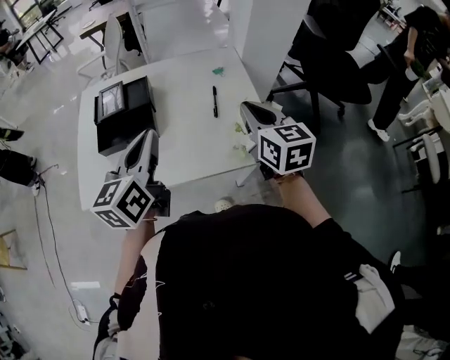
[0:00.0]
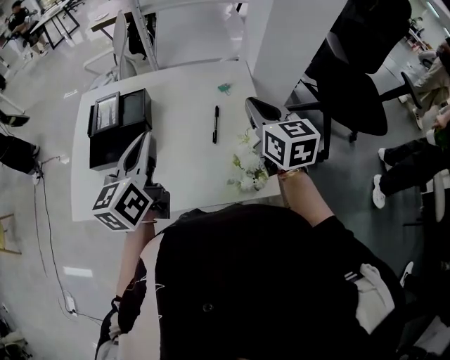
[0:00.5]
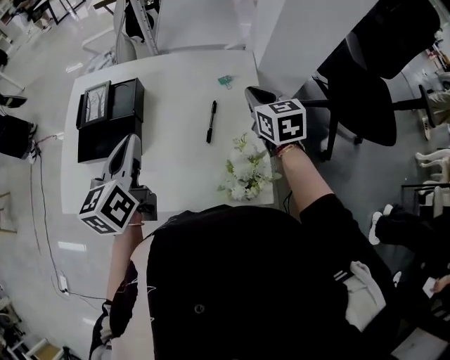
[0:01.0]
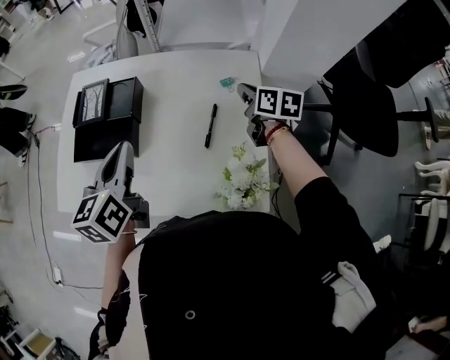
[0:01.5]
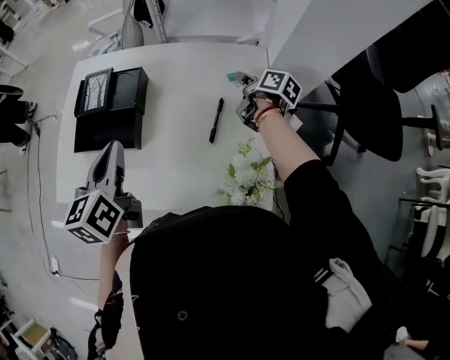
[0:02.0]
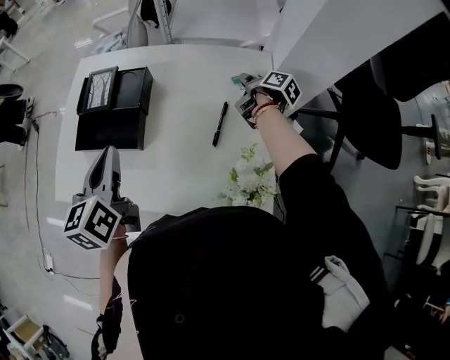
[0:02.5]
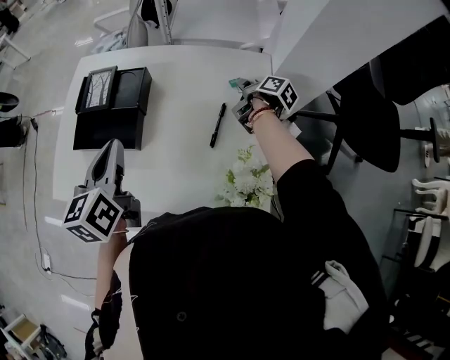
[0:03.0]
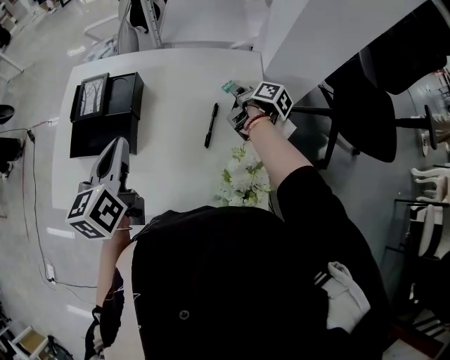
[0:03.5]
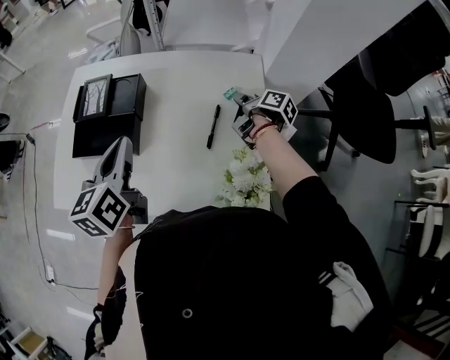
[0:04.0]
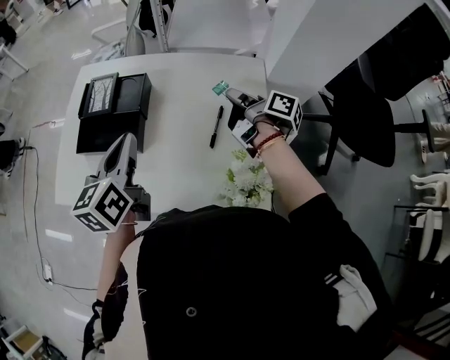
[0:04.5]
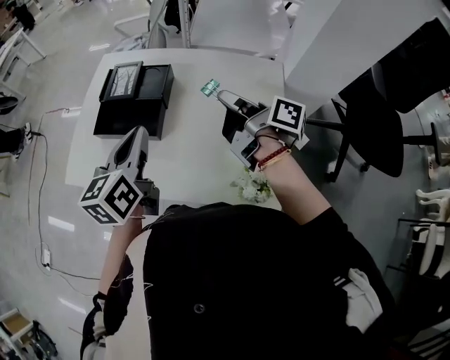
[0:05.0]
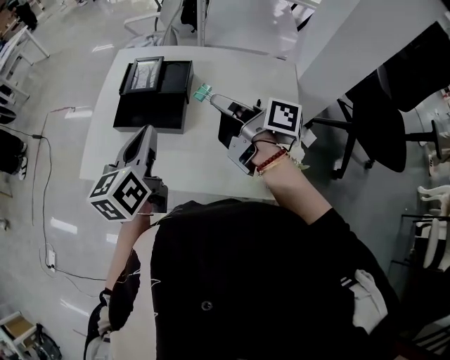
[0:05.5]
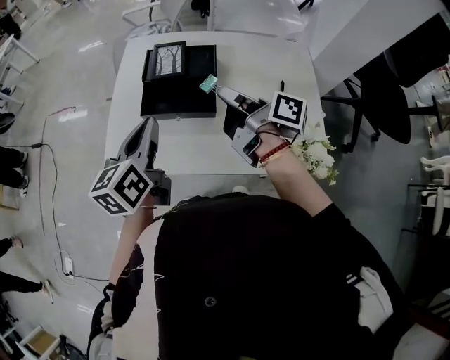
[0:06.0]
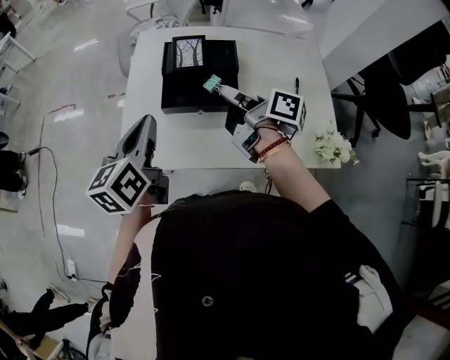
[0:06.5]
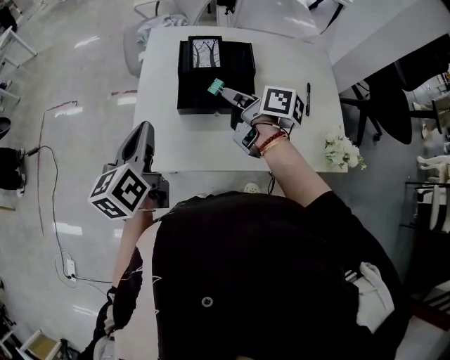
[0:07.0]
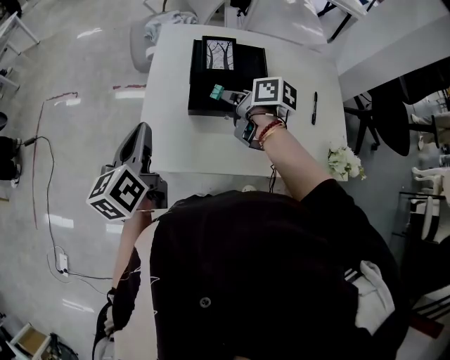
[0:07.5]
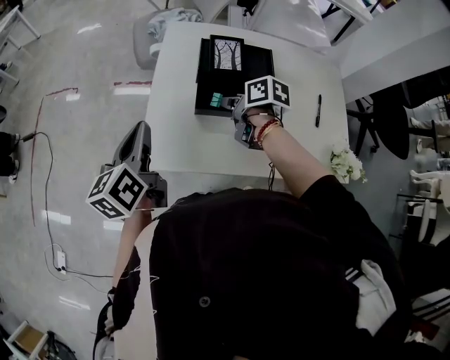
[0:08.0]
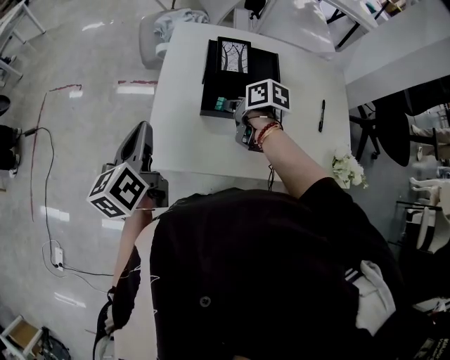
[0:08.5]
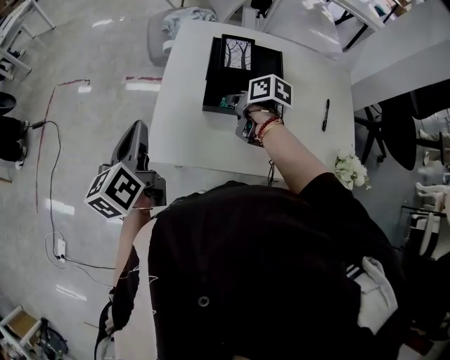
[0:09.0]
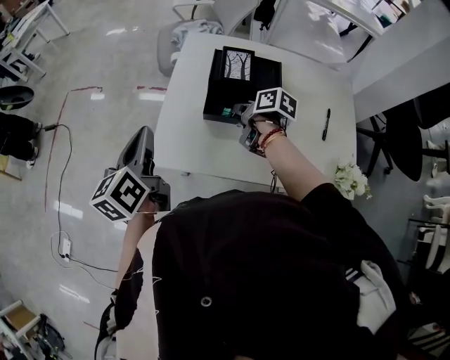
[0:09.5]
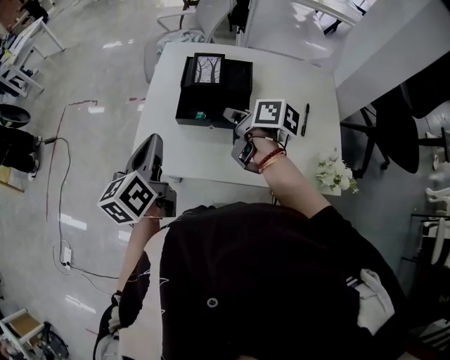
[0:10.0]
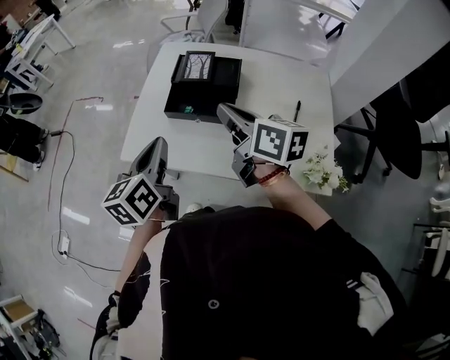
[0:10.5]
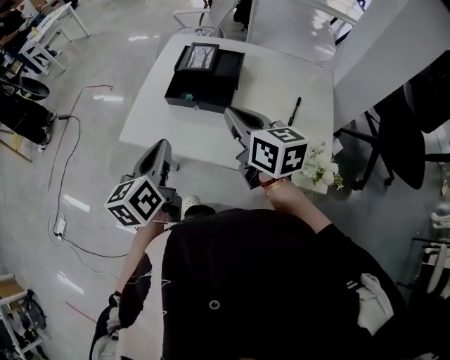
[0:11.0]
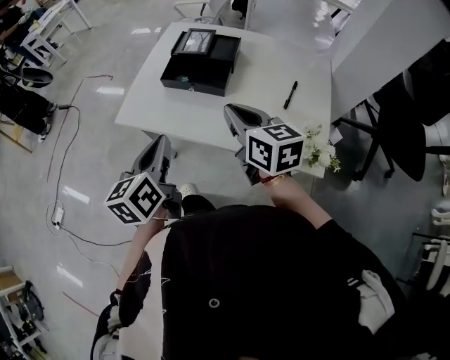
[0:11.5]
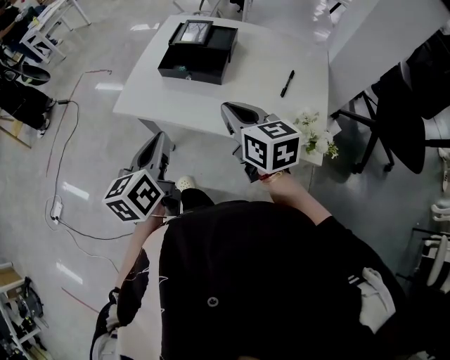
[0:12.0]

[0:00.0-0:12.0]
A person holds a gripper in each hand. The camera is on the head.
0:00.0 to 0:02.0: The left gripper goes approximately 15 cm forward and downward, and changes its angle by some 30 degrees. The right gripper goes roughly 35 cm forward and downward, rotates around the line of its fingers by about 50 degrees, clockwise from behind, and opens up.
0:02.0 to 0:04.0: The right gripper closes up.
0:04.0 to 0:06.0: The right gripper heads to the left and upward, covering some 40 cm, and turns by roughly 30 degrees. Meanwhile the left gripper moves to the left, approximately 20 cm.
0:06.0 to 0:08.0: The right gripper travels downward, to the left and forward by approximately 20 cm, and tips its fingers downward by some 40 degrees. The left gripper shifts approximately 20 cm to the left.
0:08.0 to 0:10.0: The right gripper travels upward, backward and to the right by roughly 10 cm. The left gripper shifts about 10 cm to the right and backward.
0:10.0 to 0:12.0: The two grippers go roughly 20 cm backward. The right gripper twists roughly 50 degrees counterclockwise, seen from behind.

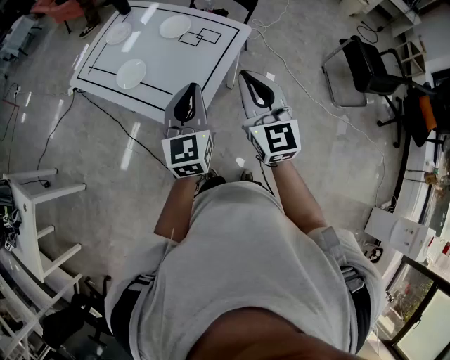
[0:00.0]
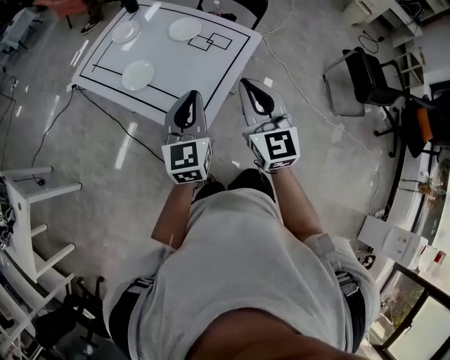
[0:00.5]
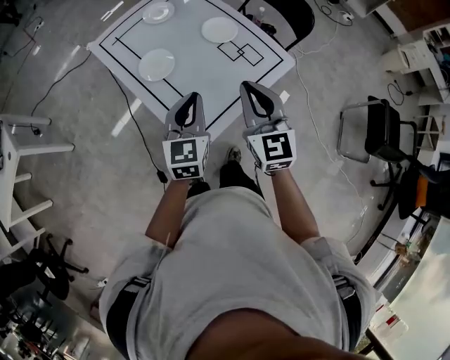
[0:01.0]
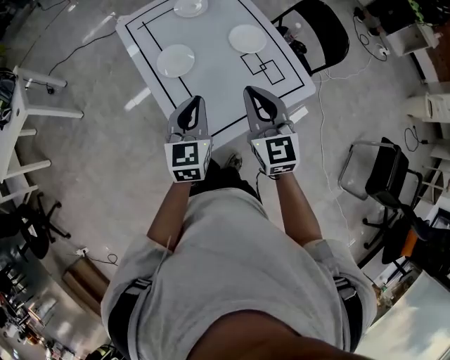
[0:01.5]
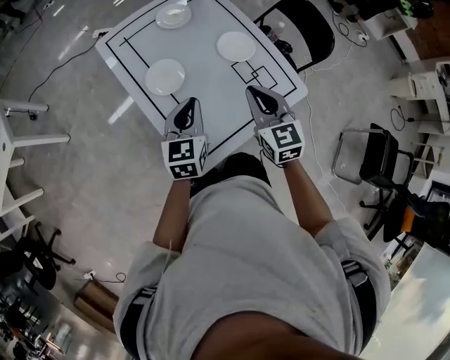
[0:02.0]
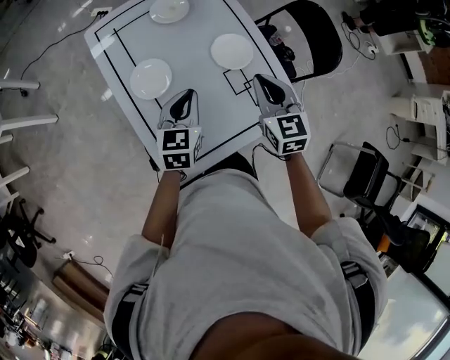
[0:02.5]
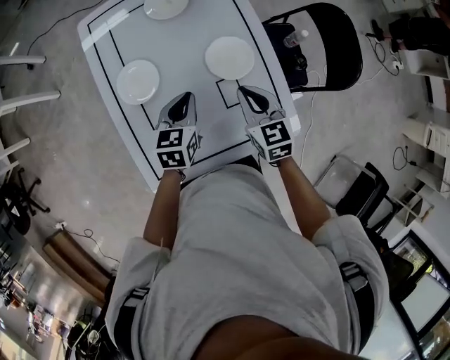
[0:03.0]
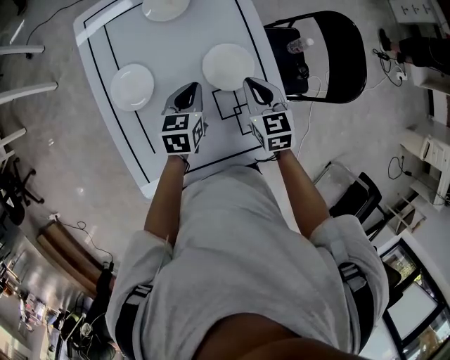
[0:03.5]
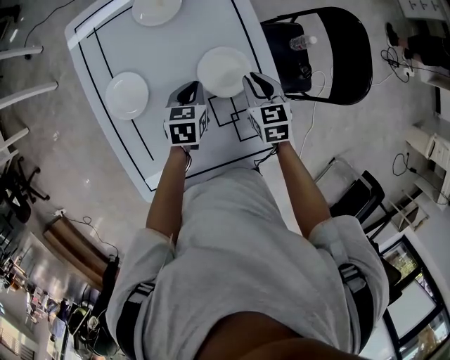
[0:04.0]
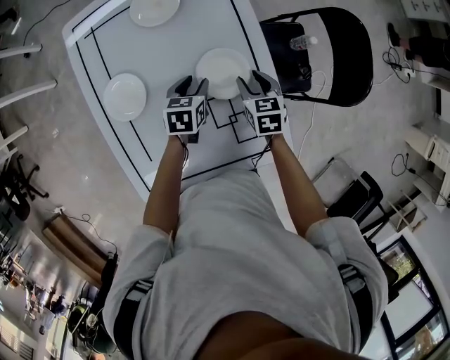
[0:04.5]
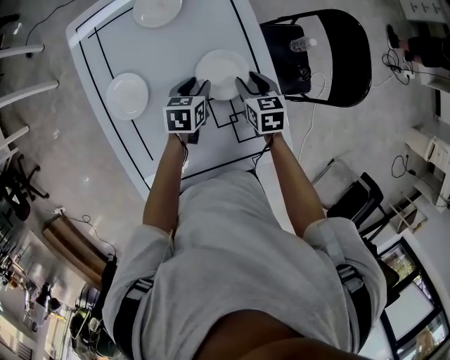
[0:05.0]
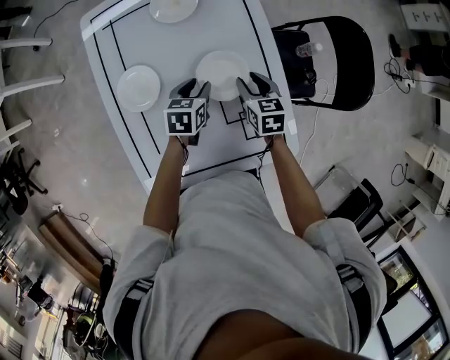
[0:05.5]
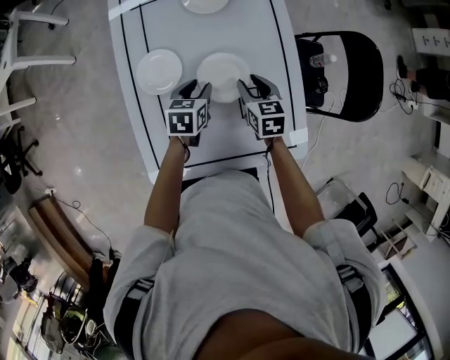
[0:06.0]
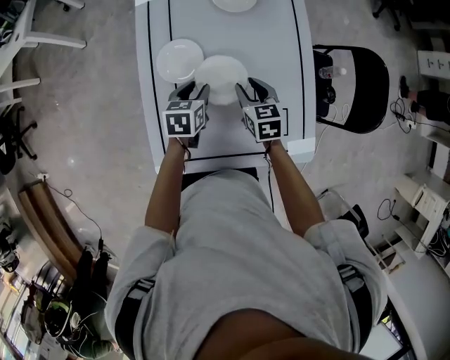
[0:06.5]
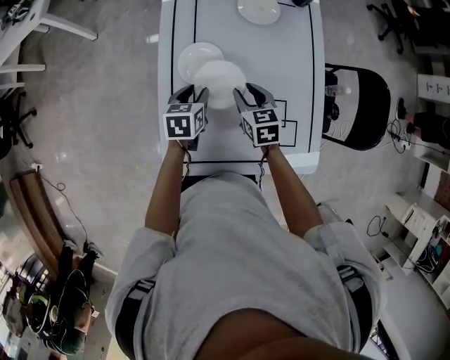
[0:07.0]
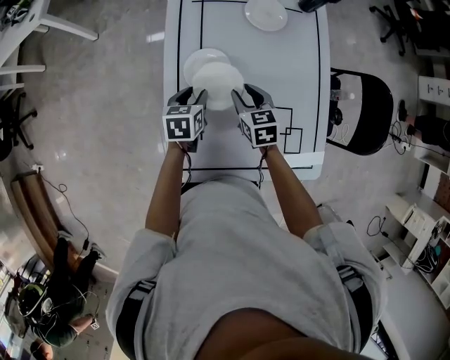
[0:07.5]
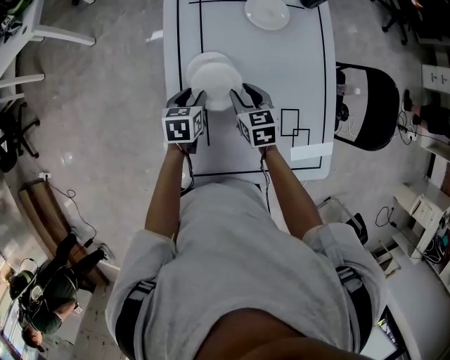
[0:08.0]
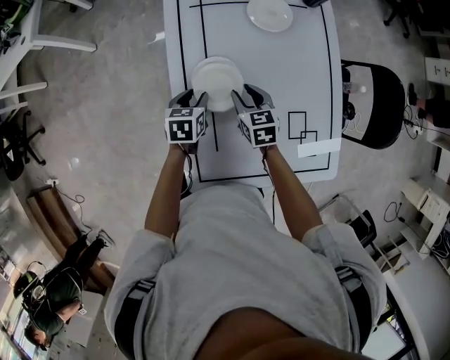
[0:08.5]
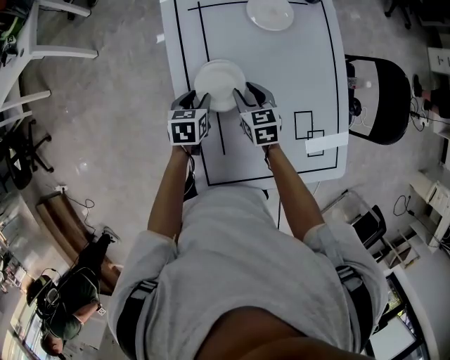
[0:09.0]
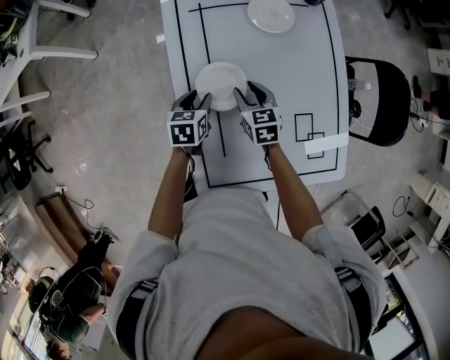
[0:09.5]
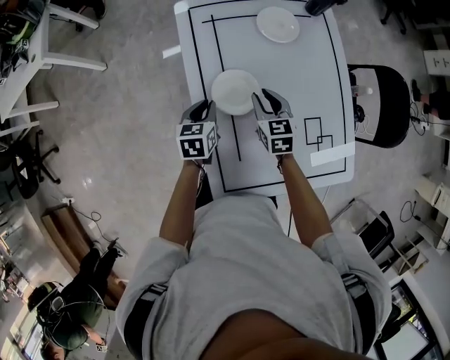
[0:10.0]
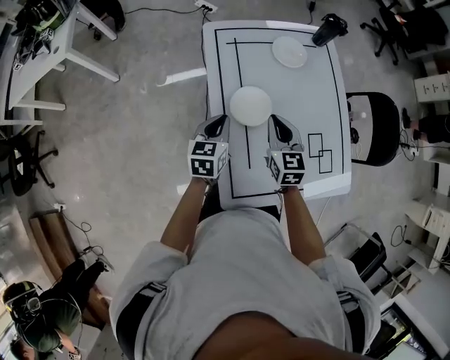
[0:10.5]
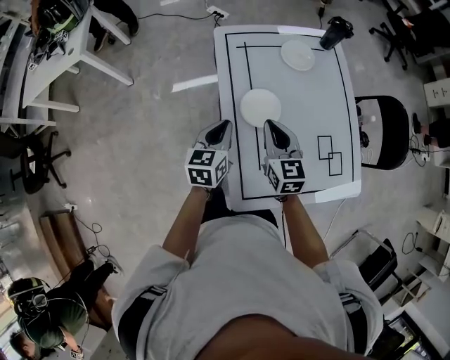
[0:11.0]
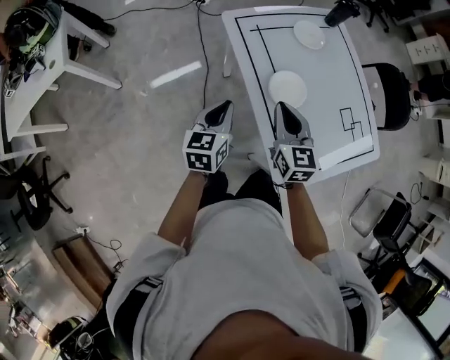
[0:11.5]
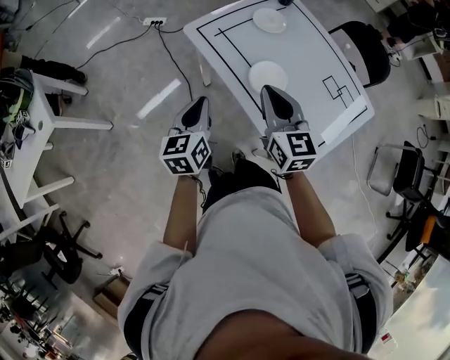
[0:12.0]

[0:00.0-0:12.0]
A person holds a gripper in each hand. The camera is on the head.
0:00.0 to 0:02.0: The right gripper ends up roughly 30 cm from where it was, and turns by approximately 40 degrees; the left gripper moves about 30 cm, and rotates about 30 degrees.
0:02.0 to 0:04.0: The two grippers go roughly 35 cm forward, downward and to the right. The right gripper rotates some 30 degrees. The left gripper turns by some 30 degrees.
0:04.0 to 0:06.0: Both grippers move to the left, approximately 10 cm. The right gripper opens its fingers, while the left gripper opens up.
0:06.0 to 0:08.0: The two grippers go approximately 20 cm to the left.
0:08.0 to 0:10.0: The left gripper shifts by roughly 5 cm, and closes.
0:10.0 to 0:12.0: The left gripper shifts some 30 cm to the left and upward, and turns by roughly 30 degrees; the right gripper goes some 35 cm upward, to the left and backward, changes its angle by approximately 40 degrees, and closes.

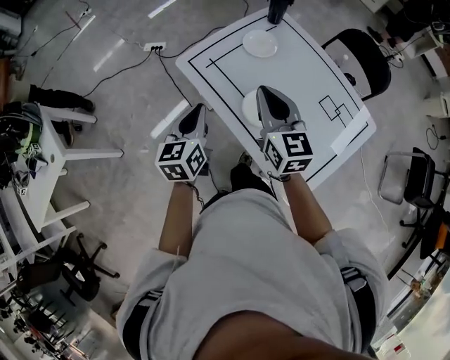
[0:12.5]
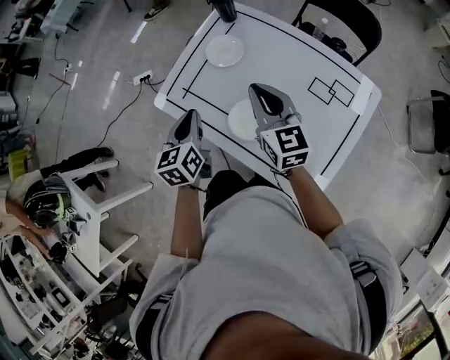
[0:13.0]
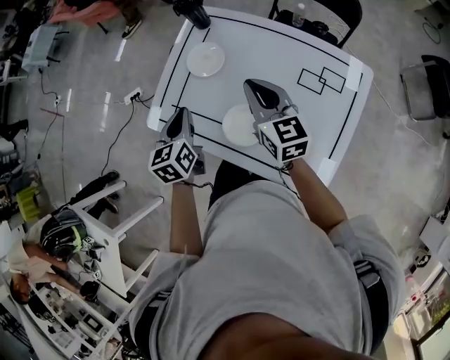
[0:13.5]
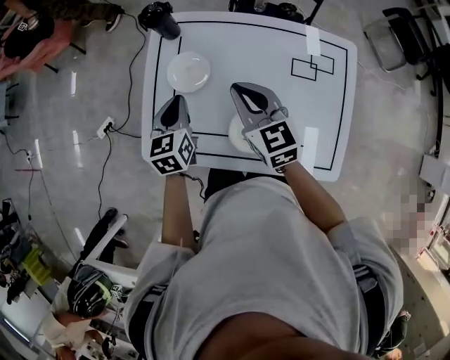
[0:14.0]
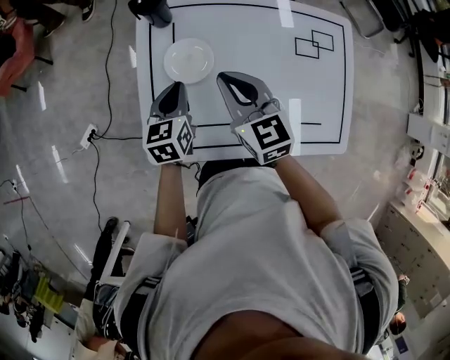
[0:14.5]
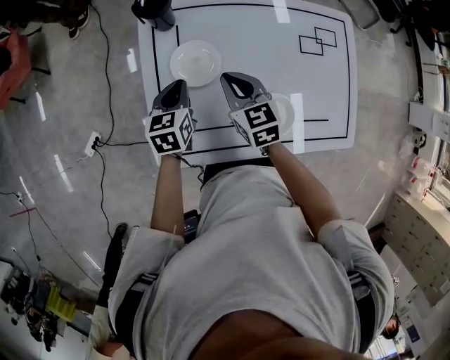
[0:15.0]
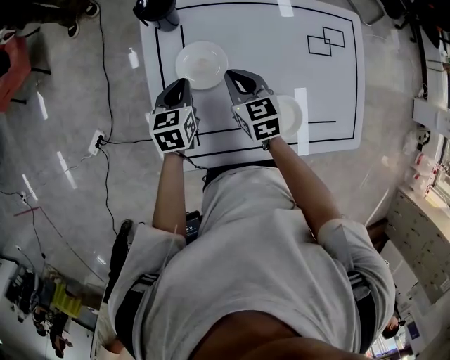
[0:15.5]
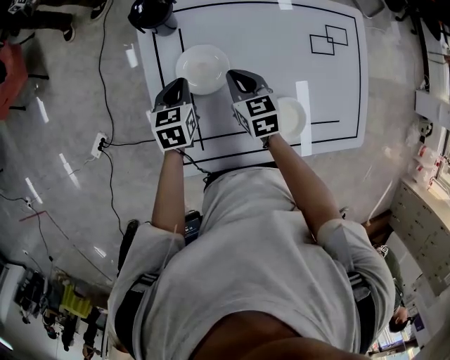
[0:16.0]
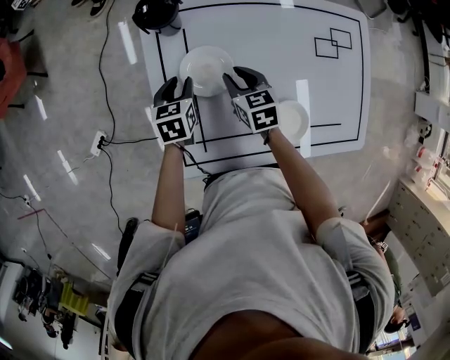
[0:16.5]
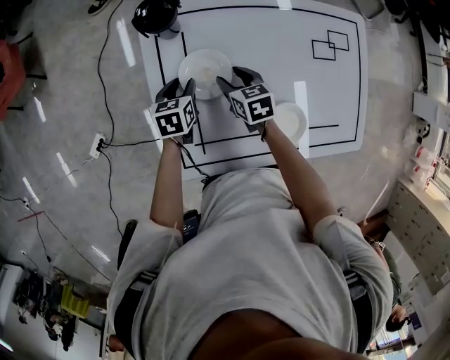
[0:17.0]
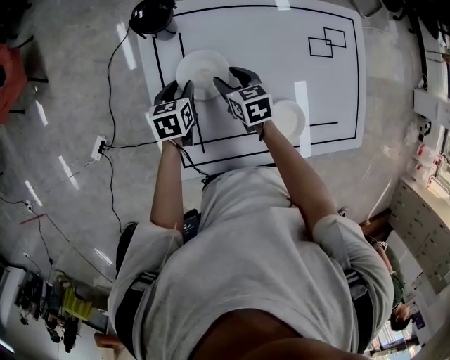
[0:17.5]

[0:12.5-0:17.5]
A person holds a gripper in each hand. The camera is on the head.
0:12.5 to 0:15.0: The left gripper shifts by some 40 cm, and swivels some 60 degrees. Meanwhile the right gripper changes place by some 35 cm, and swivels approximately 50 degrees.
0:15.0 to 0:17.5: The two grippers go roughly 10 cm downward and forward. The left gripper opens; the right gripper opens.
